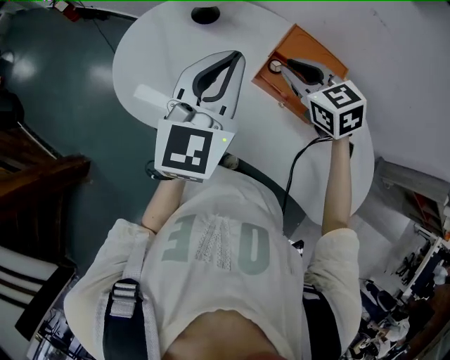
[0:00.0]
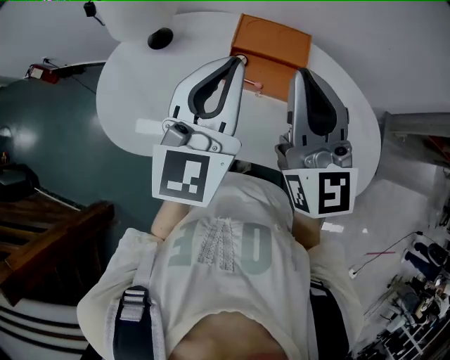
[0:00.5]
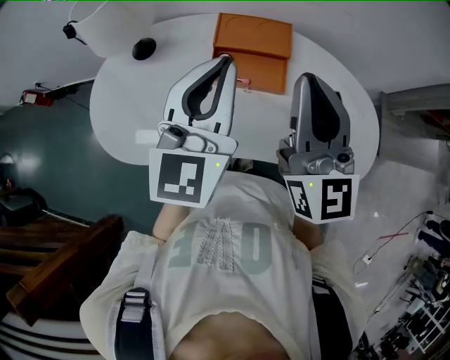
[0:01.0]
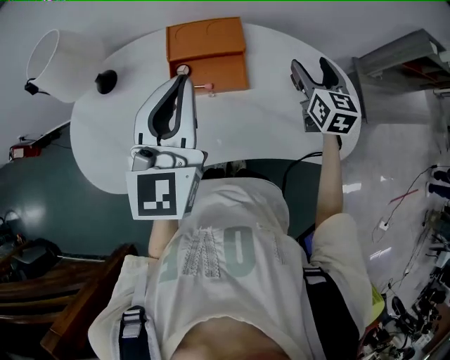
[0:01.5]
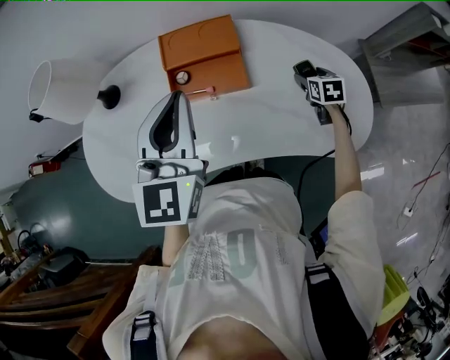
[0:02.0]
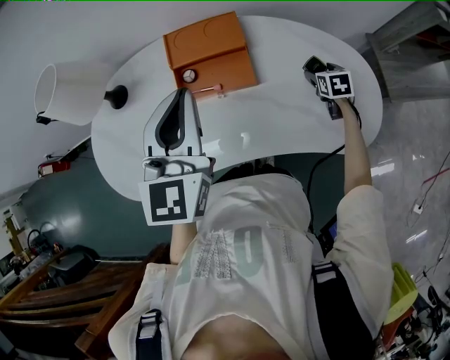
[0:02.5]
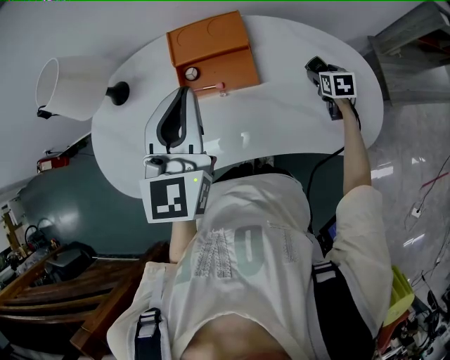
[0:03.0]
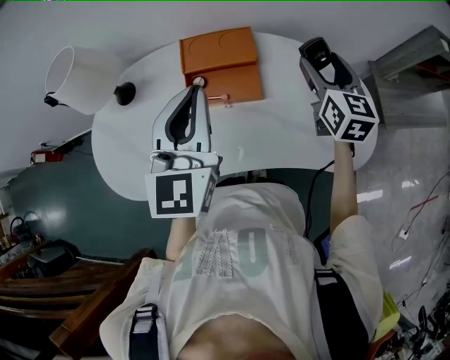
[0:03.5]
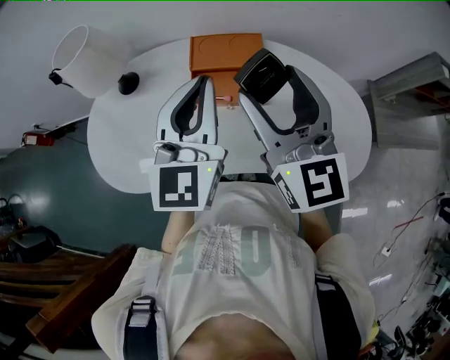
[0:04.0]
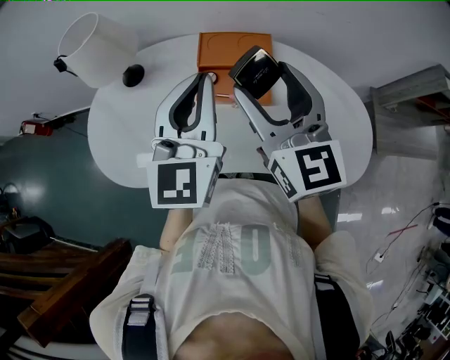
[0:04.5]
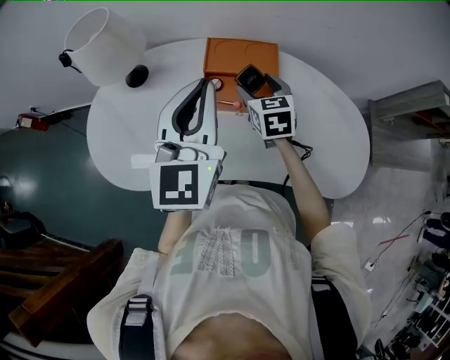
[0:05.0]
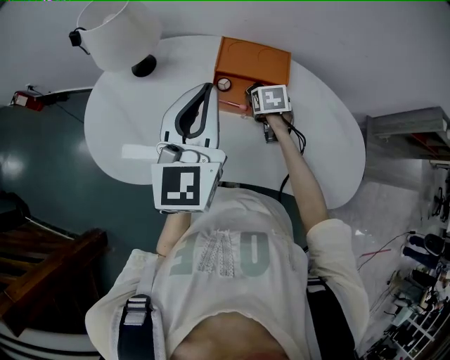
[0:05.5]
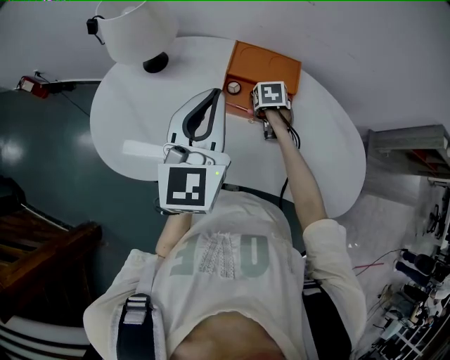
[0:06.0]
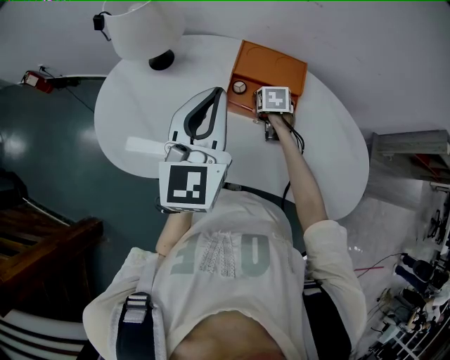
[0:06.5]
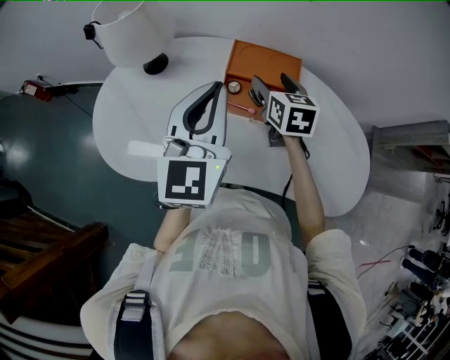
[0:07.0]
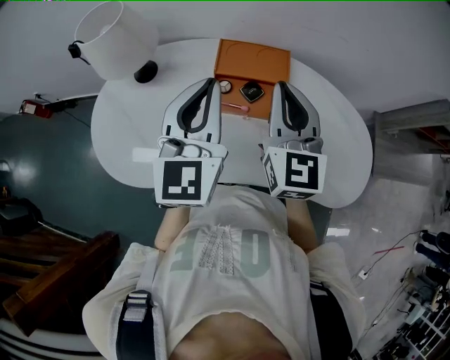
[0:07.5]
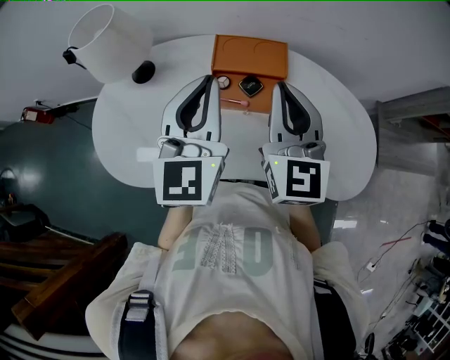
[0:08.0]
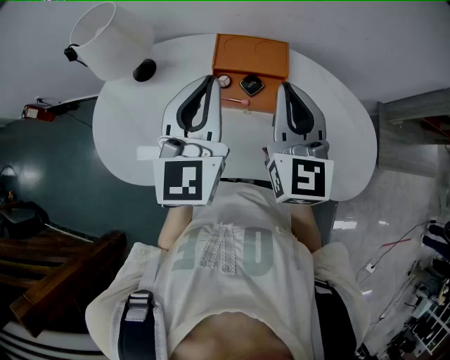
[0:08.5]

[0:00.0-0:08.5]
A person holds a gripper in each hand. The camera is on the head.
0:00.0 to 0:02.0: The right gripper moves about 50 cm, changes its angle by roughly 70 degrees, and opens its fingers. Meanwhile the left gripper changes place by about 15 cm, and changes its angle by roughly 30 degrees.
0:02.0 to 0:04.0: The right gripper goes roughly 40 cm upward and to the left, and tips its fingers upward by about 50 degrees.
0:04.0 to 0:06.5: The left gripper travels to the left by some 10 cm, while the right gripper moves downward and forward, some 40 cm, and tips its fingers downward by about 60 degrees.
0:06.5 to 0:08.5: The right gripper is displaced upward by about 30 cm, angles its fingers upward, by roughly 60 degrees, and closes up. Meanwhile the left gripper ends up approximately 5 cm from where it was.

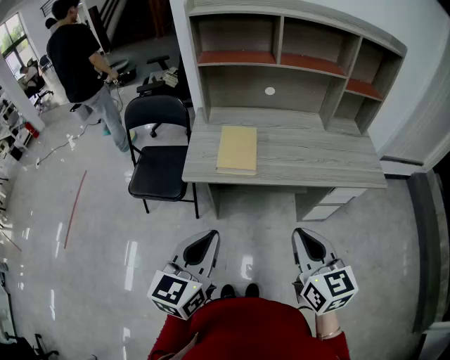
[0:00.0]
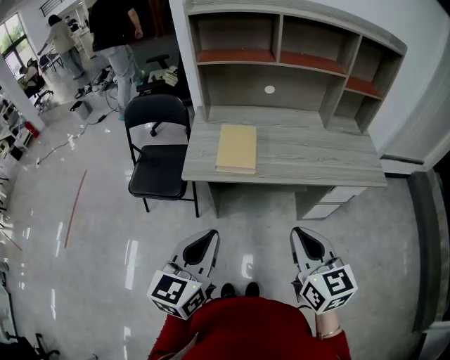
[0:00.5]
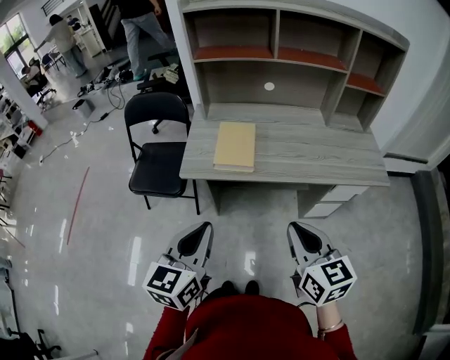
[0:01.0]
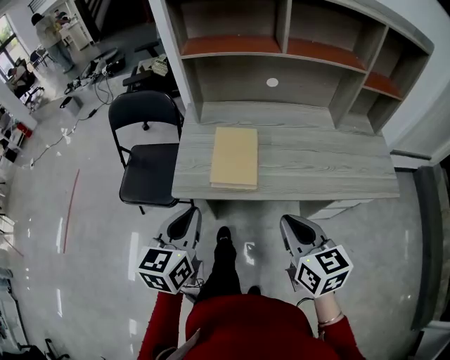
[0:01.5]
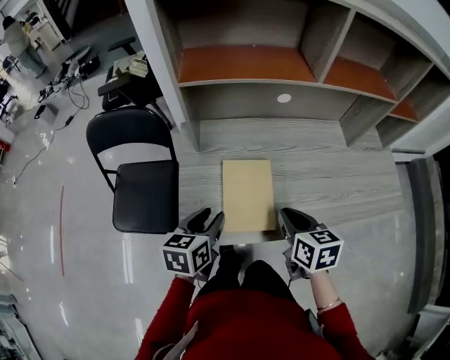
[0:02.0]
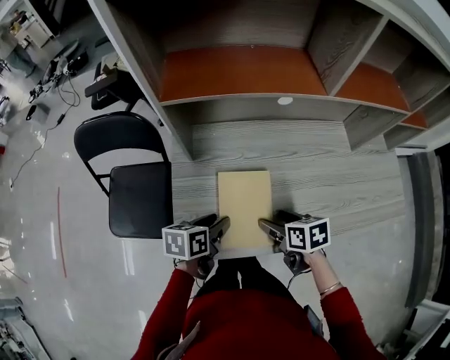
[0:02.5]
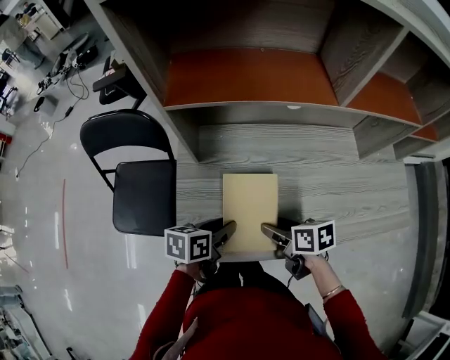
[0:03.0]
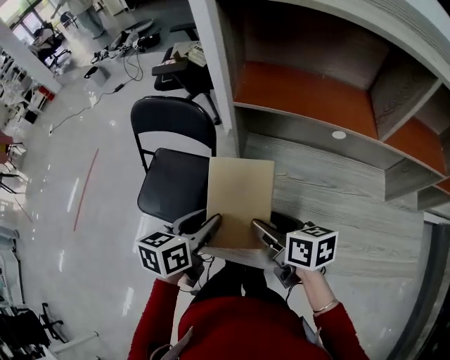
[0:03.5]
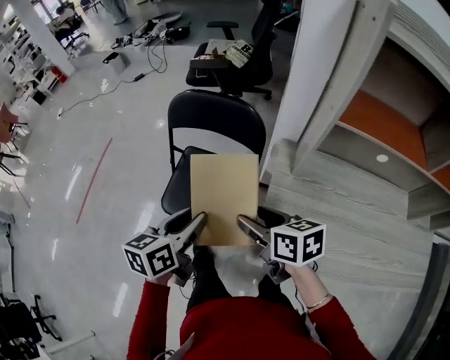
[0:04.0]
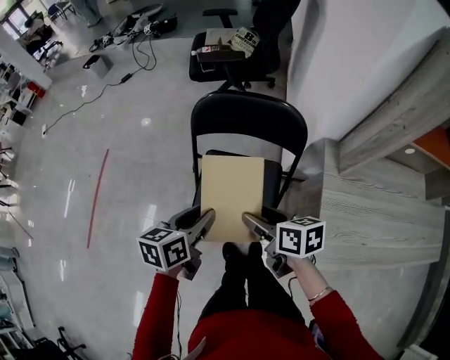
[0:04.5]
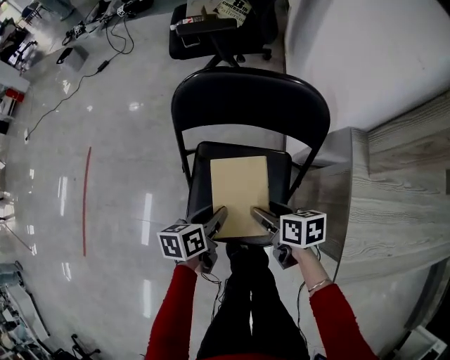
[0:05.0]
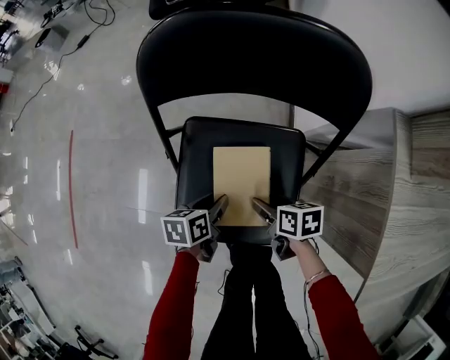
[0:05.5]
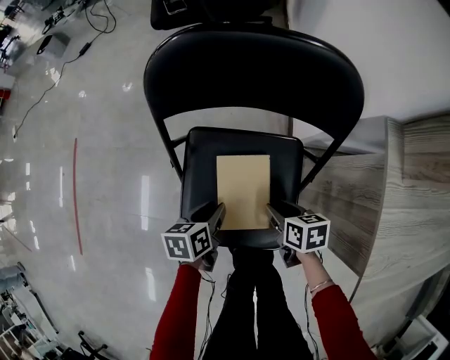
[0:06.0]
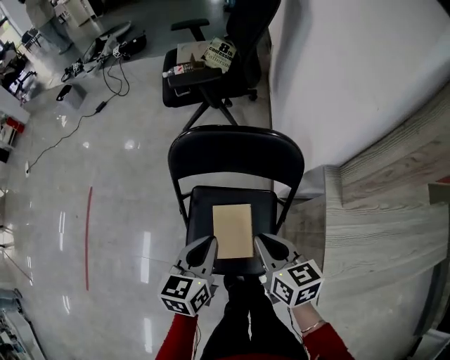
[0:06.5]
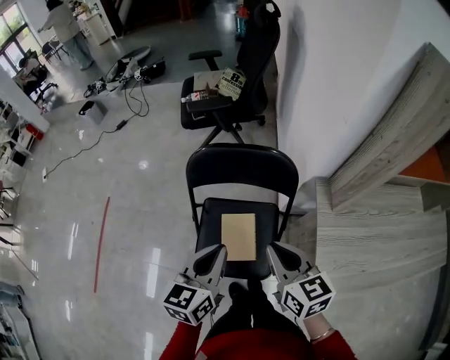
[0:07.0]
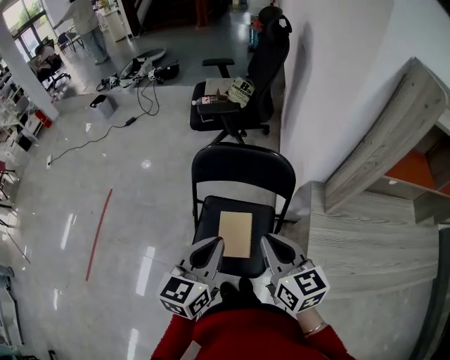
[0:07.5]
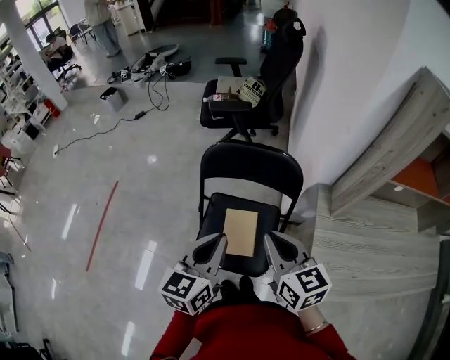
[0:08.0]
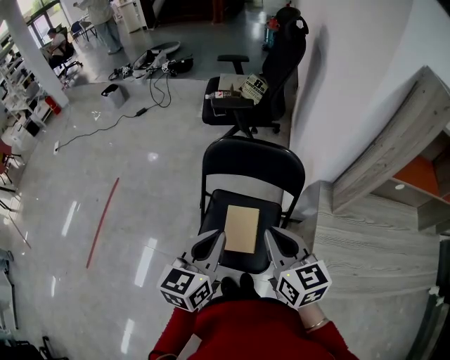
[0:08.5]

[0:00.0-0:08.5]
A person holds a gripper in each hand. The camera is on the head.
0:00.0 to 0:02.0: Both grippers travel together forward and downward, about 35 cm. The right gripper turns by approximately 30 degrees; the left gripper rotates some 30 degrees, and opens.
0:02.0 to 0:04.0: The right gripper moves roughly 10 cm downward and comes back, turns by approximately 40 degrees, and opens, while the left gripper ends up about 25 cm from where it was, and swivels approximately 20 degrees.
0:04.0 to 0:06.5: The right gripper moves to the left and forward, roughly 15 cm, goes downward and returns, approximately 40 cm each way, changes its angle by approximately 30 degrees, and closes; the left gripper moves forward and to the left, roughly 20 cm, goes downward and returns, roughly 40 cm each way, and closes its fingers.
0:06.5 to 0:08.5: The right gripper goes roughly 15 cm upward, and rotates about 20 degrees; the left gripper is displaced upward and backward by roughly 15 cm.

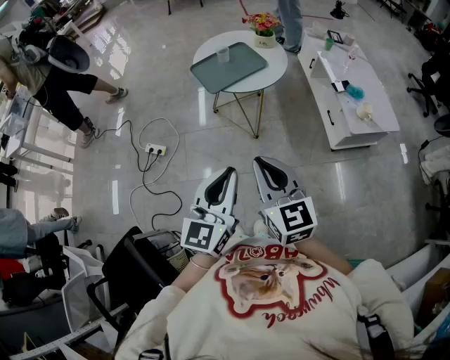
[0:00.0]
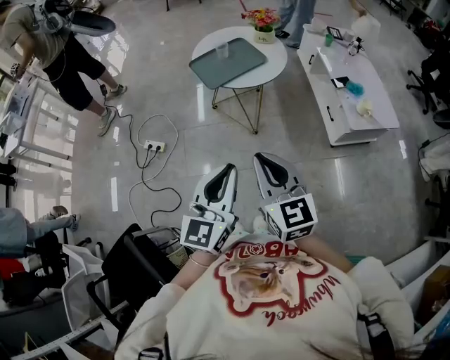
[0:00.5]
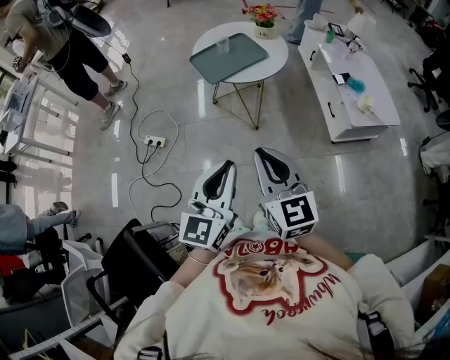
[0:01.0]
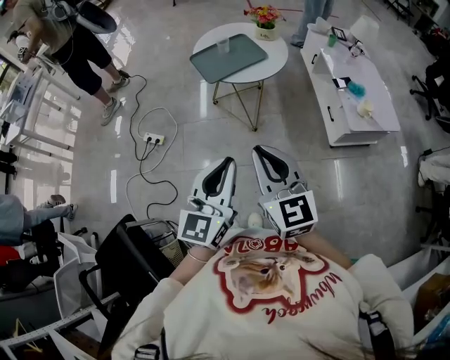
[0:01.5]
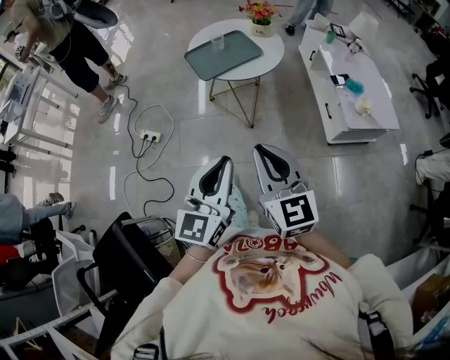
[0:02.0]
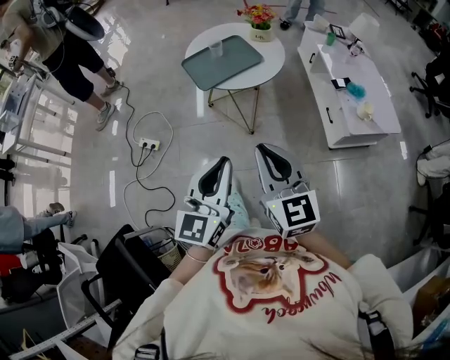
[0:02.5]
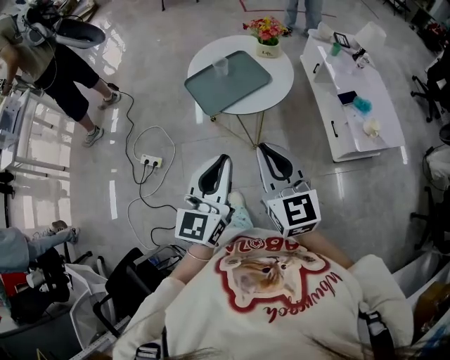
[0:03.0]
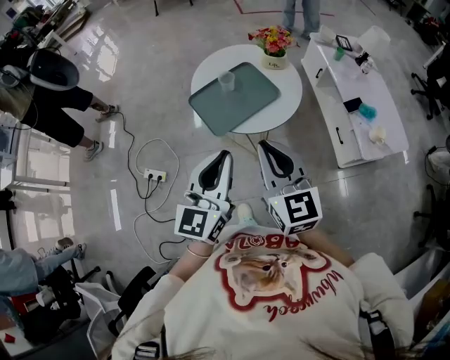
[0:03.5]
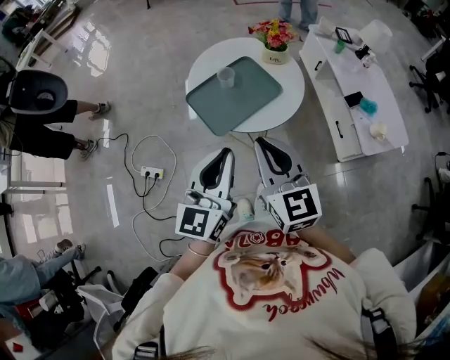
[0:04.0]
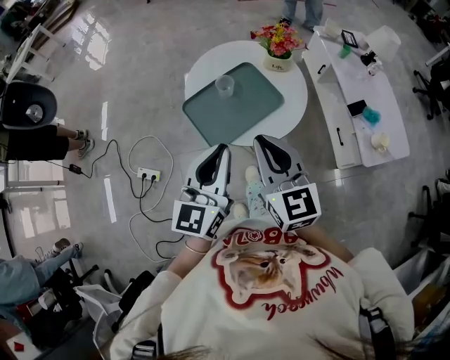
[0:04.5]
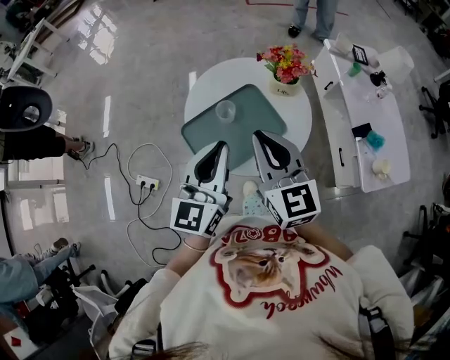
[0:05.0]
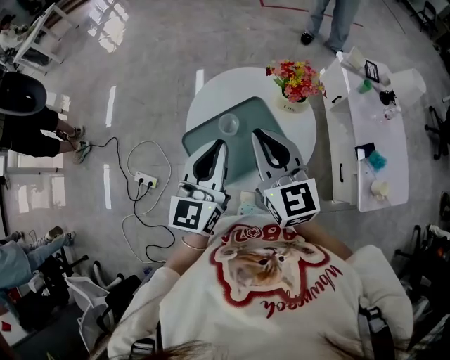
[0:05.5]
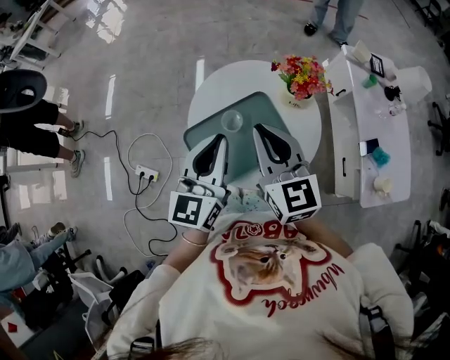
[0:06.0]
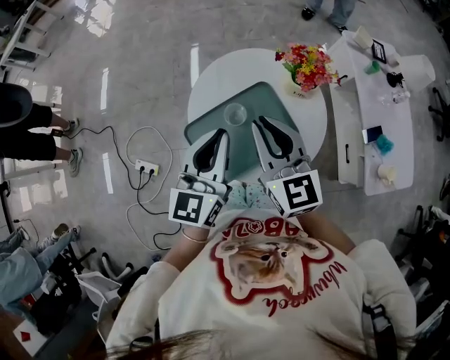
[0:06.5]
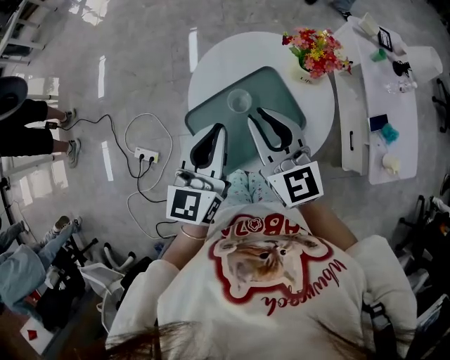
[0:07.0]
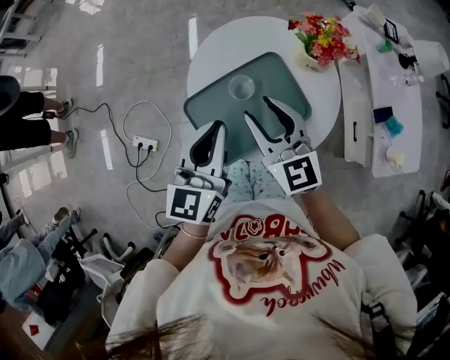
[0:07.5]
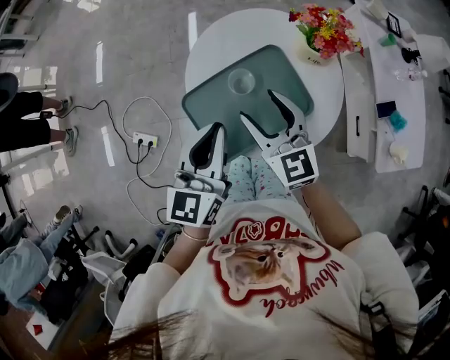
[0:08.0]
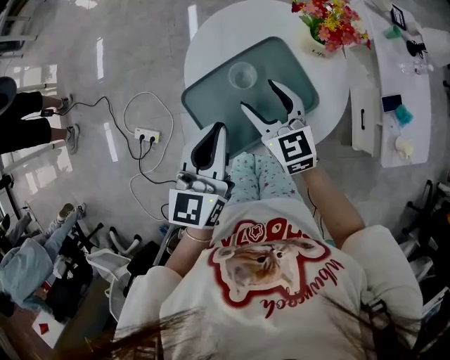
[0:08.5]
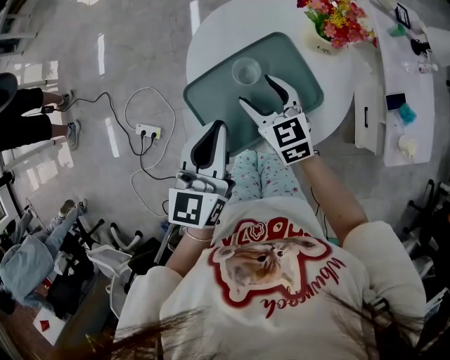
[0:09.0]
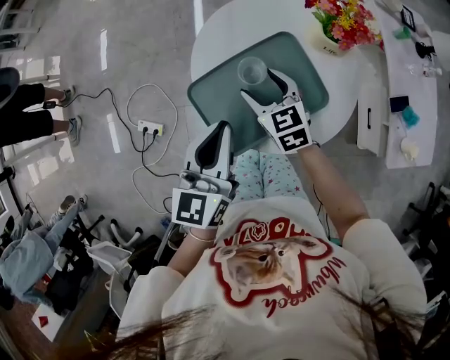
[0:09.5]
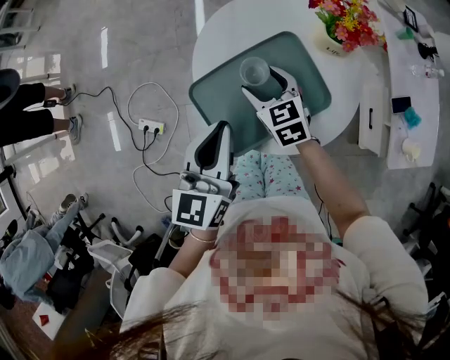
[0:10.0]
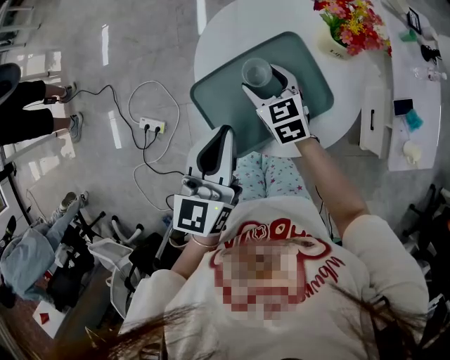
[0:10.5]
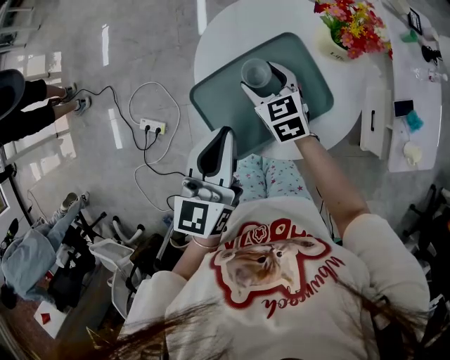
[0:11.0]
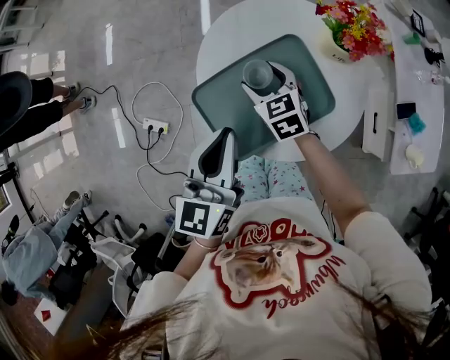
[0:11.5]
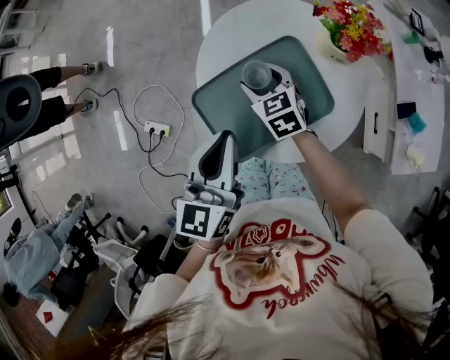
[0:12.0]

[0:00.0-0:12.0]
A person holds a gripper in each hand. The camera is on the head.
0:00.0 to 0:02.0: There are only small adjustments of the grippers.
0:02.0 to 0:04.0: The two grippers go roughly 30 cm forward.
0:04.0 to 0:06.0: Both grippers move forward, roughly 25 cm.
0:06.0 to 0:08.0: The right gripper goes roughly 10 cm downward, and opens up, while the left gripper travels downward by about 5 cm.
0:08.0 to 0:10.0: The right gripper travels downward and forward by about 15 cm, and rotates approximately 20 degrees.
0:10.0 to 0:12.0: The grippers make only small movements.
